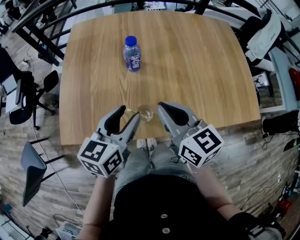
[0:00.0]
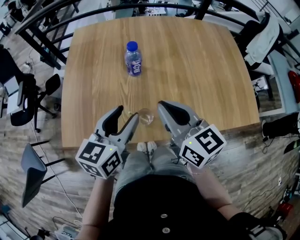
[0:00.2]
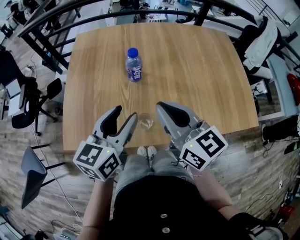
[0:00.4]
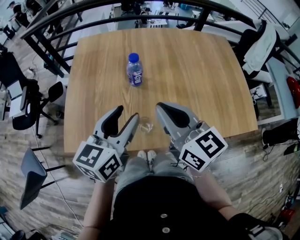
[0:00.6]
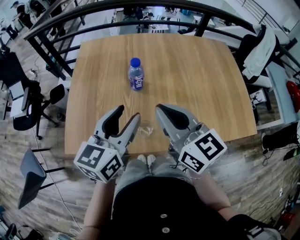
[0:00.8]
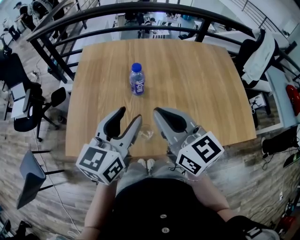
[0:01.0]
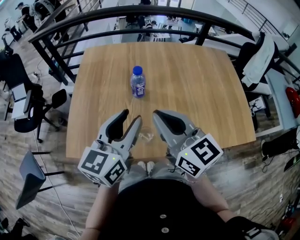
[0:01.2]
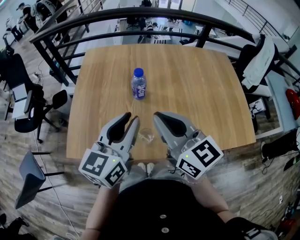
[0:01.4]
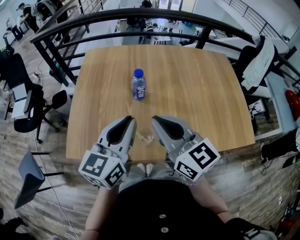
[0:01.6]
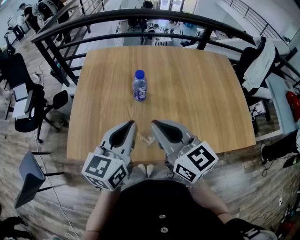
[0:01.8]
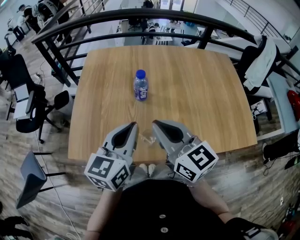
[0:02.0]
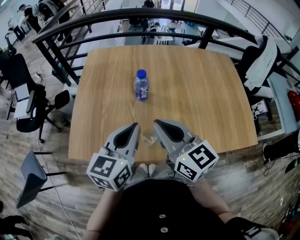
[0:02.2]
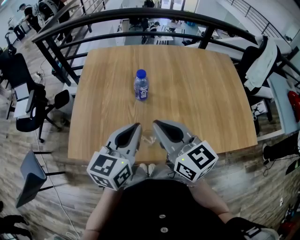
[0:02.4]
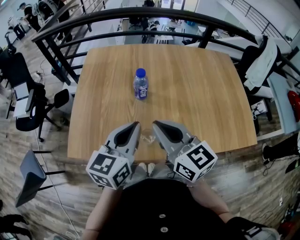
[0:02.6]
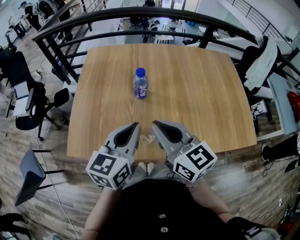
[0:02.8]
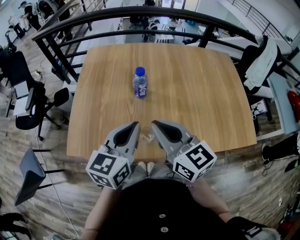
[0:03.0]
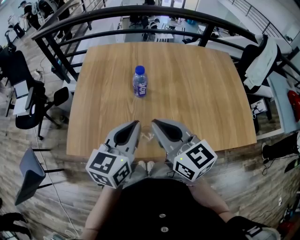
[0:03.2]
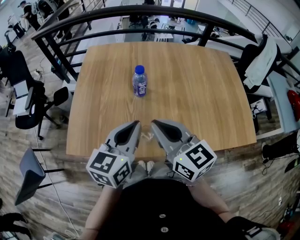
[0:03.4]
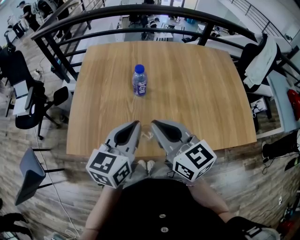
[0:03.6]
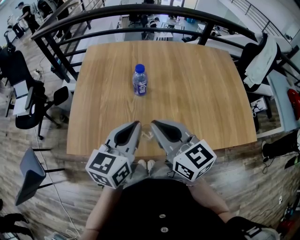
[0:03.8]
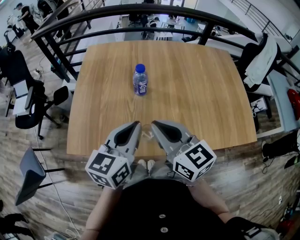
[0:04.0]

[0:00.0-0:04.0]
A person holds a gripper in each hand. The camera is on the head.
0:00.0 to 0:01.4: Both grippers travel together upward, roughly 10 cm. The left gripper closes.
0:01.4 to 0:02.6: The left gripper closes its fingers.
0:02.6 to 0:04.0: Both grippers stay about where they are.

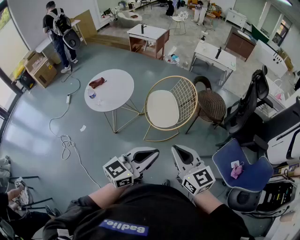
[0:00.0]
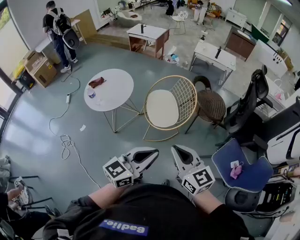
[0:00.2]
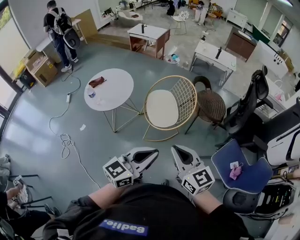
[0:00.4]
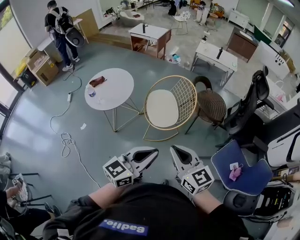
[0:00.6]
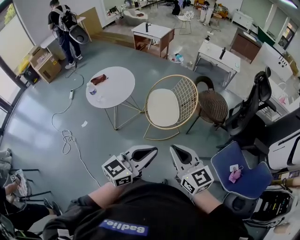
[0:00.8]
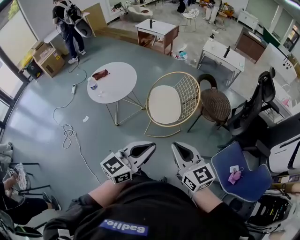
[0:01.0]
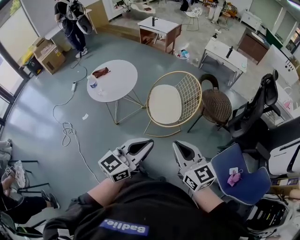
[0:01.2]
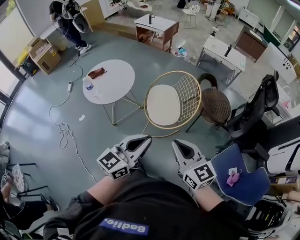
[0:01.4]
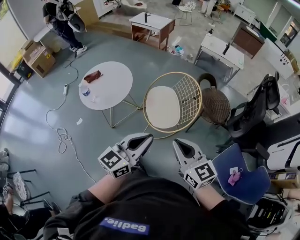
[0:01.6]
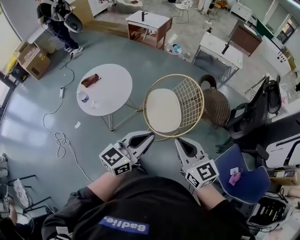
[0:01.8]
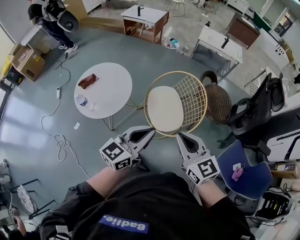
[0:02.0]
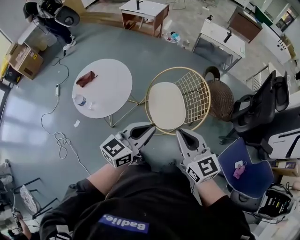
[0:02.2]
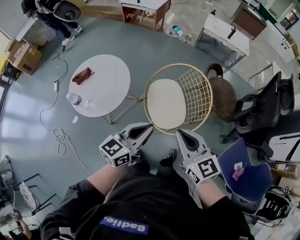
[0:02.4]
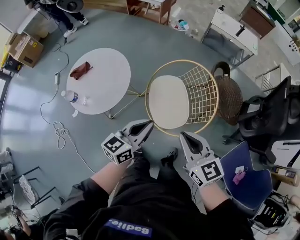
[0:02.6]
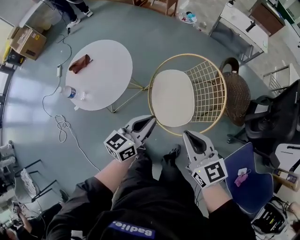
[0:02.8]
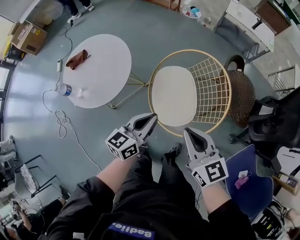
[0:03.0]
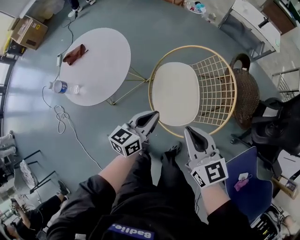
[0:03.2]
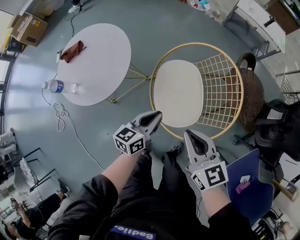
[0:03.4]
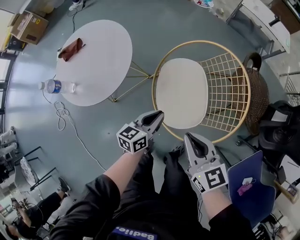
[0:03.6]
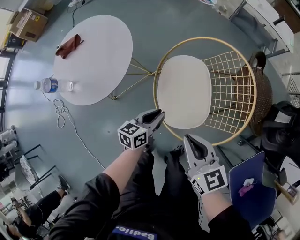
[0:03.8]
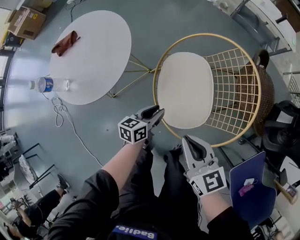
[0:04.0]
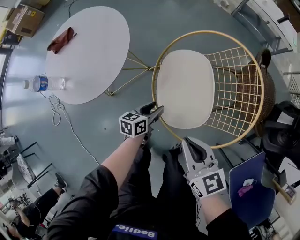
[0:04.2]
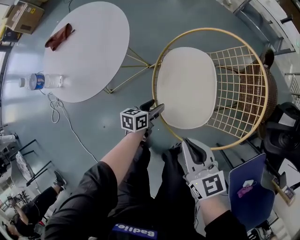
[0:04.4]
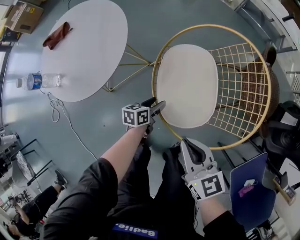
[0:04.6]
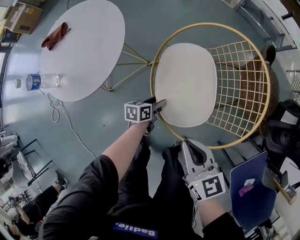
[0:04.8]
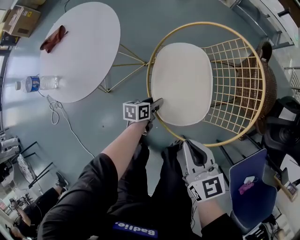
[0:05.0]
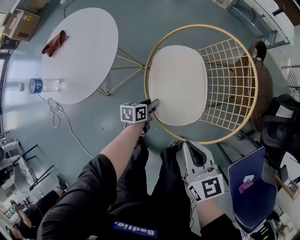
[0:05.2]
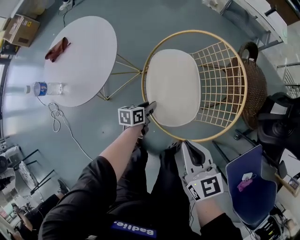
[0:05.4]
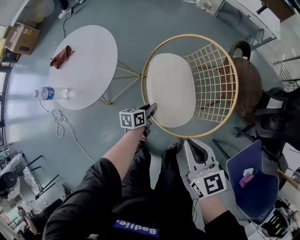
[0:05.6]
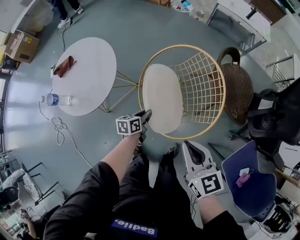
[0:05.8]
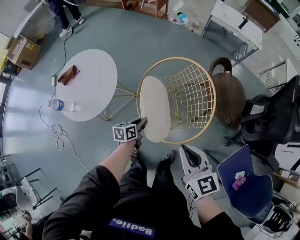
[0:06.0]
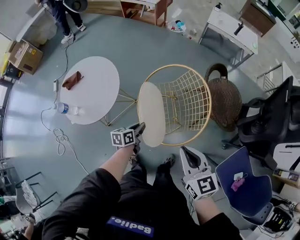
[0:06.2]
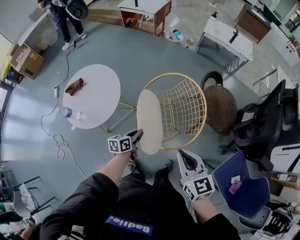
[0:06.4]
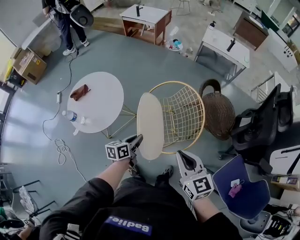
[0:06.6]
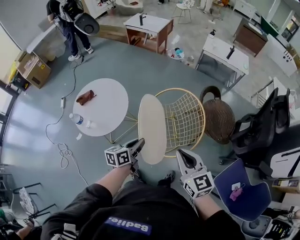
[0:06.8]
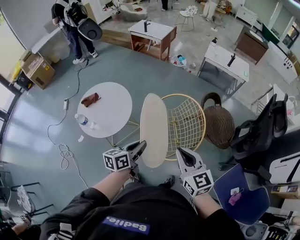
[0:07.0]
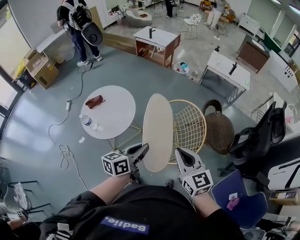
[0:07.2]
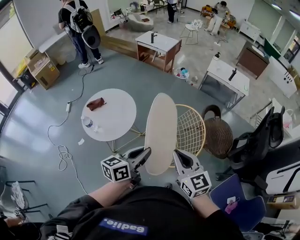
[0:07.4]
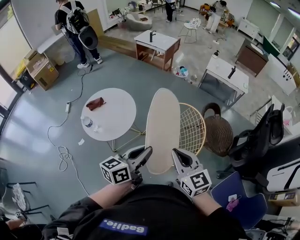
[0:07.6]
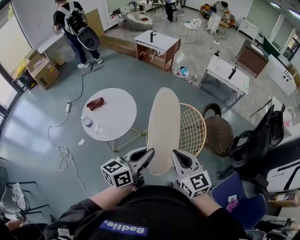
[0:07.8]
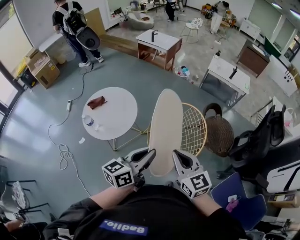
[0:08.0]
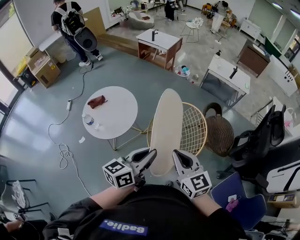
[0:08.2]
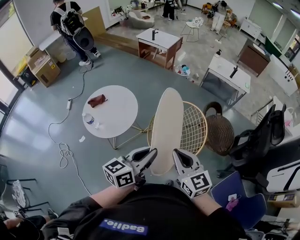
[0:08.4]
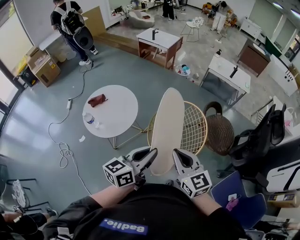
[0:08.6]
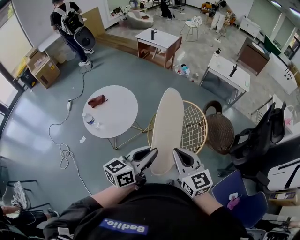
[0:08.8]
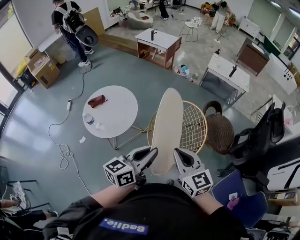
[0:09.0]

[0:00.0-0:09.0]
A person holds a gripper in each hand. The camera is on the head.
0:00.0 to 0:01.6: Both grippers move forward, approximately 10 cm.
0:01.6 to 0:03.0: The left gripper moves downward and forward, some 30 cm, and changes its angle by some 20 degrees, while the right gripper moves forward and downward, some 25 cm.
0:03.0 to 0:04.4: The left gripper moves downward, approximately 35 cm, rotates roughly 30 degrees, and opens. Meanwhile the right gripper moves downward, about 15 cm.
0:04.4 to 0:06.0: The right gripper moves upward and to the right, some 20 cm; the left gripper is displaced upward by approximately 15 cm, and closes its fingers.
0:06.0 to 0:07.6: The right gripper travels upward and to the left by about 15 cm, while the left gripper moves upward, about 40 cm, and angles its fingers upward, by roughly 30 degrees.
0:07.6 to 0:09.0: The grippers move only a little.

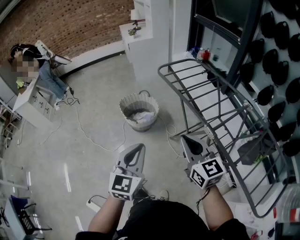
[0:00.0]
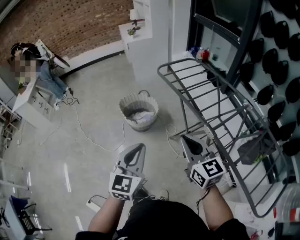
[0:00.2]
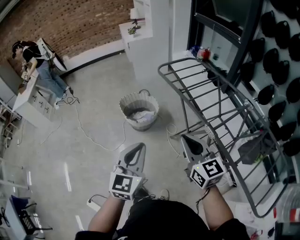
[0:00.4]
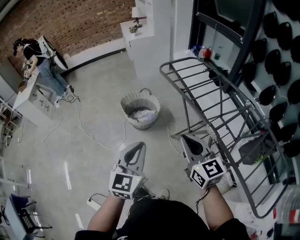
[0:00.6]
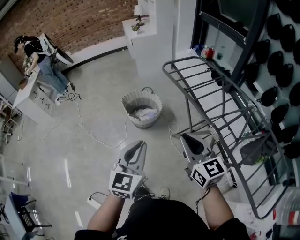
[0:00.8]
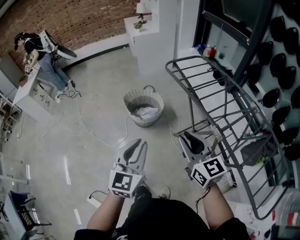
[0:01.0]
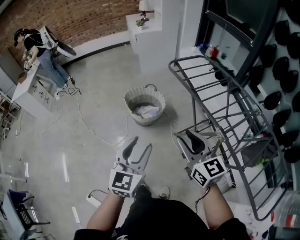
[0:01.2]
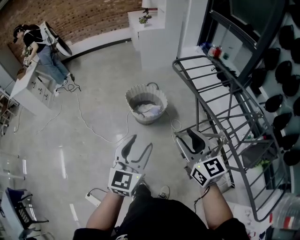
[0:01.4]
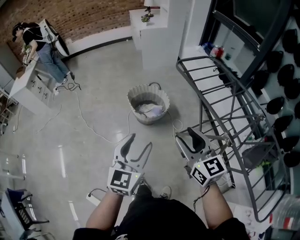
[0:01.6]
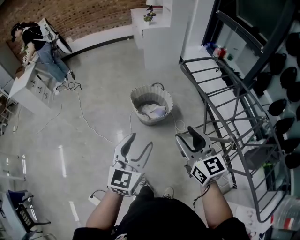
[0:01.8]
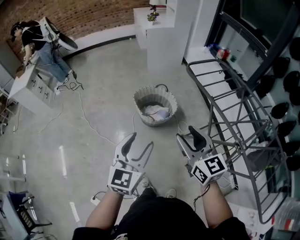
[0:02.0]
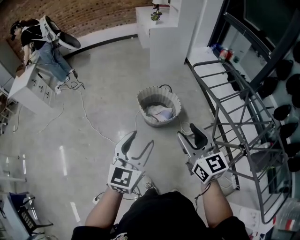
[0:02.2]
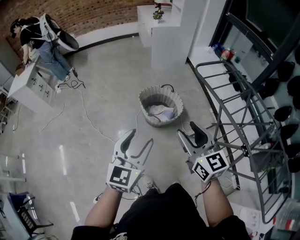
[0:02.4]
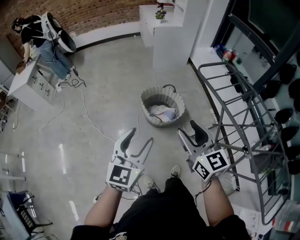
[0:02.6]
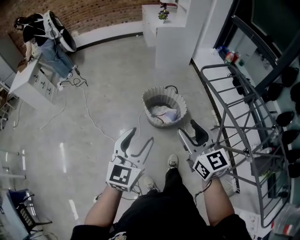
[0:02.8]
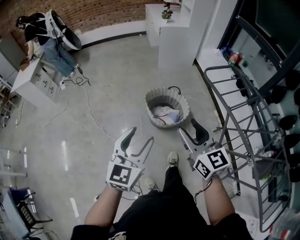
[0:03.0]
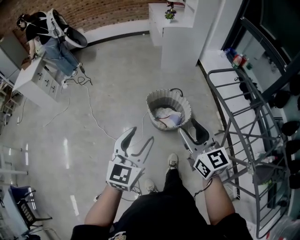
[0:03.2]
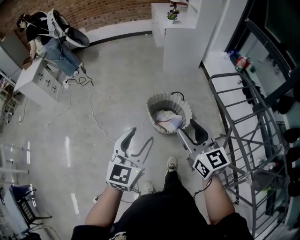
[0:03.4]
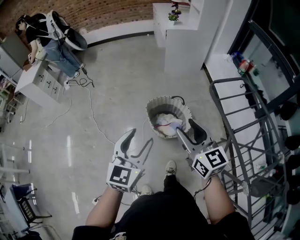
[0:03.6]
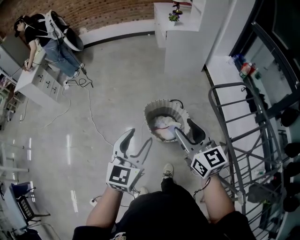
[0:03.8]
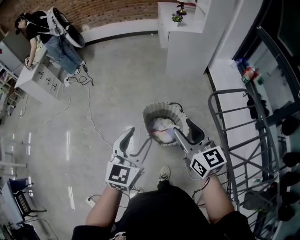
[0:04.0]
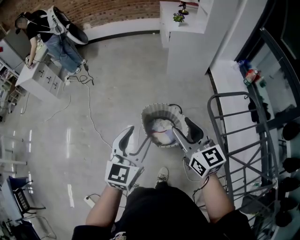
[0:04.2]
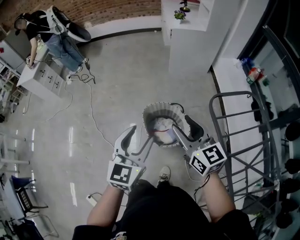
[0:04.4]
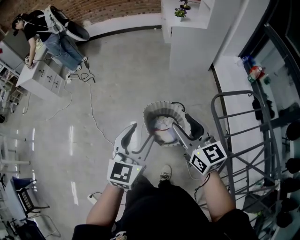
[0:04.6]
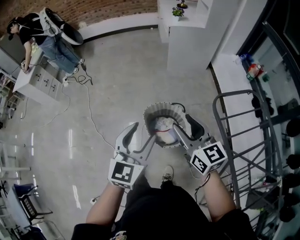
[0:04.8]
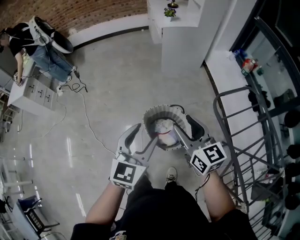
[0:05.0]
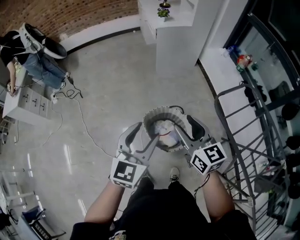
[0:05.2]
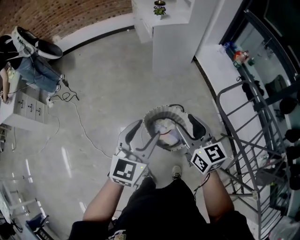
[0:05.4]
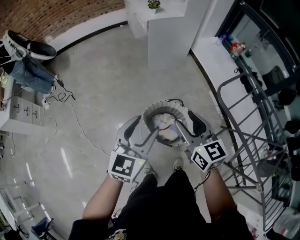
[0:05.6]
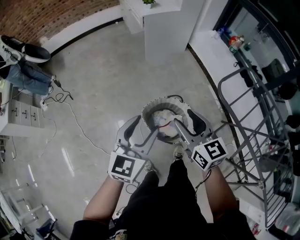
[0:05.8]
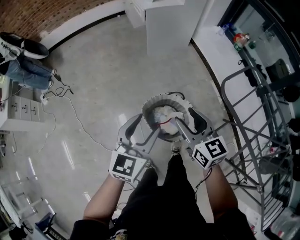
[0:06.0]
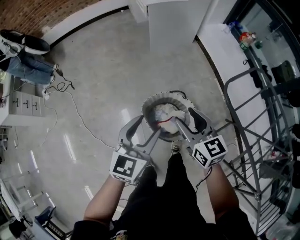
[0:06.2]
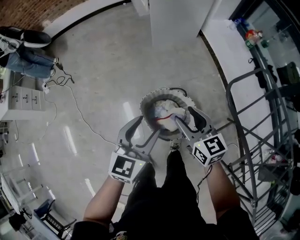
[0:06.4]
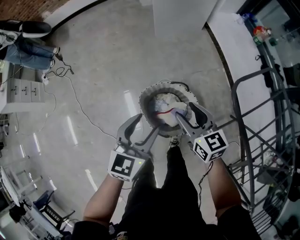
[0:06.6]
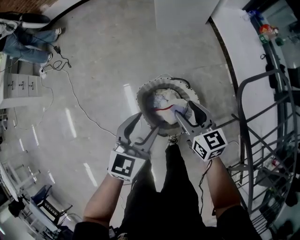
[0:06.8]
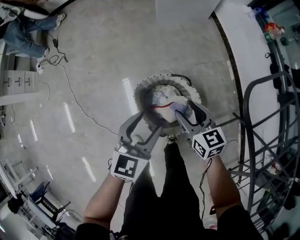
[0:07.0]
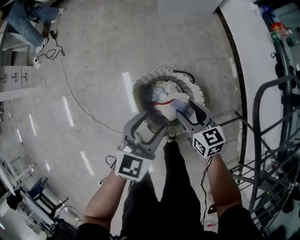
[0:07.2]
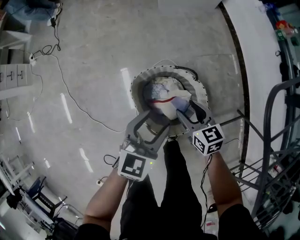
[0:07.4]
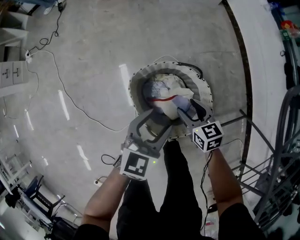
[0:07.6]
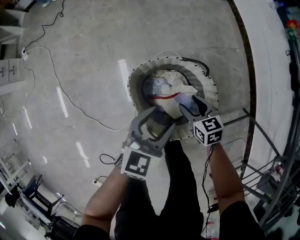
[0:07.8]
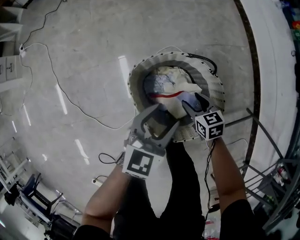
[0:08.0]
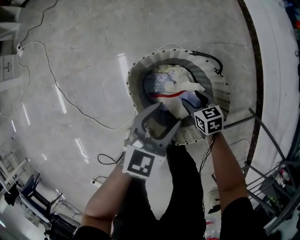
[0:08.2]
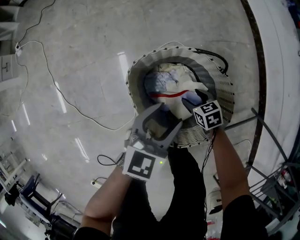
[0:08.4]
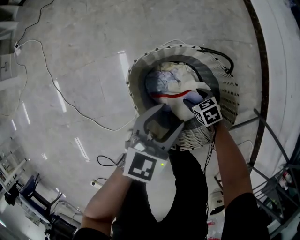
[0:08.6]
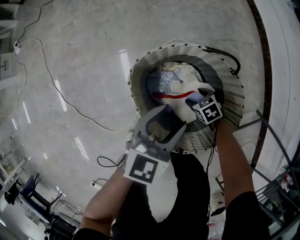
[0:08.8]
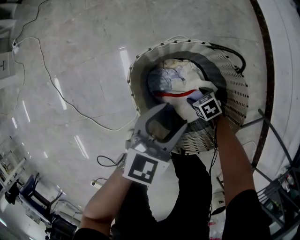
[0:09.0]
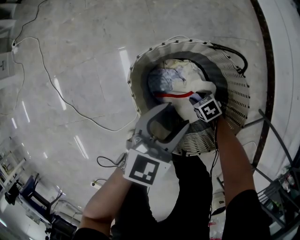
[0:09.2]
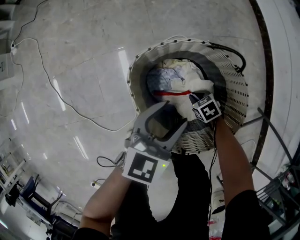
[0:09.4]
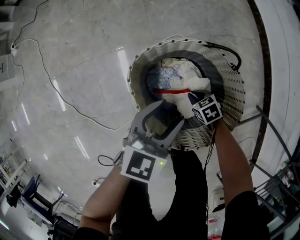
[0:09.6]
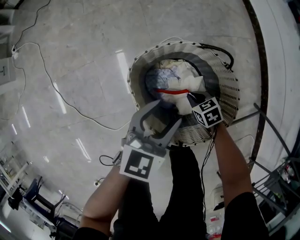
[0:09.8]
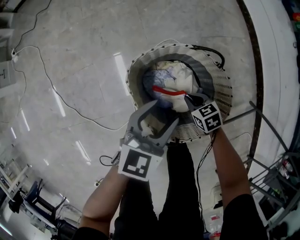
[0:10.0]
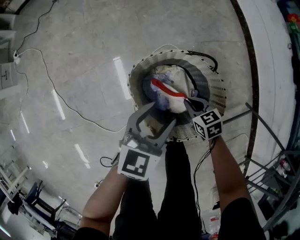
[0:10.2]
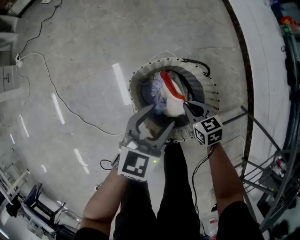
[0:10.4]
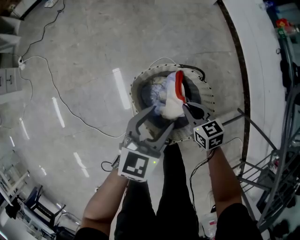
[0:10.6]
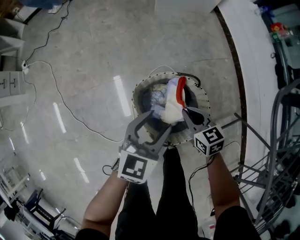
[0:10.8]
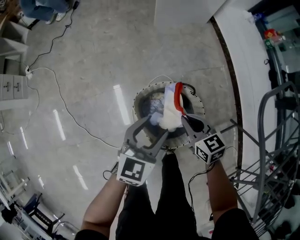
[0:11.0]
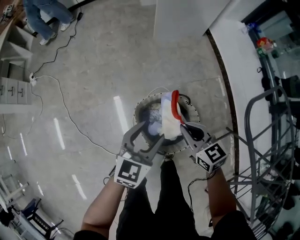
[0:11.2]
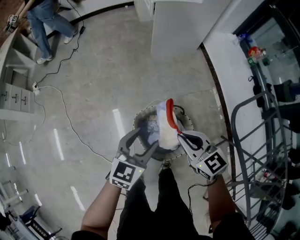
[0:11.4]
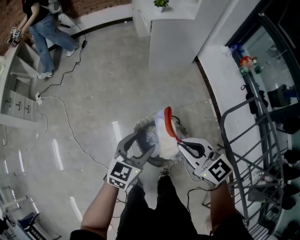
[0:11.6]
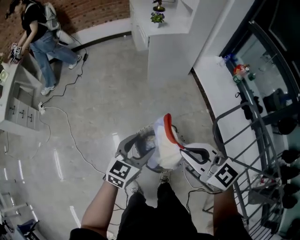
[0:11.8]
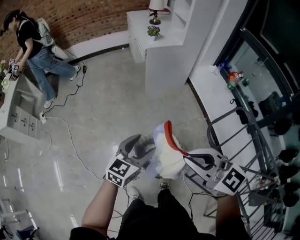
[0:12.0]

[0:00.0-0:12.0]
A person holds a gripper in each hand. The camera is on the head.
0:00.0 to 0:01.6: The grippers both shift to the left and forward by some 15 cm. The left gripper opens its fingers. The right gripper opens up.
0:01.6 to 0:03.0: The left gripper moves to the left and forward, some 20 cm, while the right gripper is displaced forward and to the left by some 20 cm.
0:03.0 to 0:04.4: Both grippers move forward and to the right, about 25 cm.
0:04.4 to 0:06.0: Both grippers move forward, to the left and downward, roughly 15 cm. The left gripper changes its angle by roughly 20 degrees; the right gripper changes its angle by approximately 20 degrees.
0:06.0 to 0:07.6: Both grippers move downward, some 40 cm. The right gripper swivels some 30 degrees.
0:07.6 to 0:09.0: The left gripper heads downward, covering approximately 20 cm. Meanwhile the right gripper moves downward, roughly 35 cm, and points its fingers about 30 degrees further downward.
0:09.0 to 0:10.4: The right gripper travels upward by approximately 25 cm, changes its angle by some 30 degrees, and closes, while the left gripper moves upward, approximately 15 cm.
0:10.4 to 0:12.0: The left gripper shifts about 35 cm upward. Meanwhile the right gripper shifts approximately 70 cm upward, and tips its fingers upward by approximately 40 degrees.
